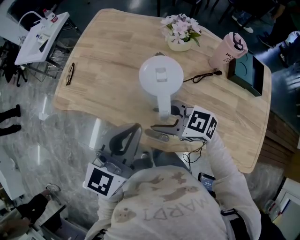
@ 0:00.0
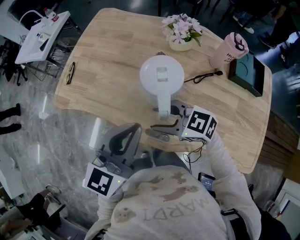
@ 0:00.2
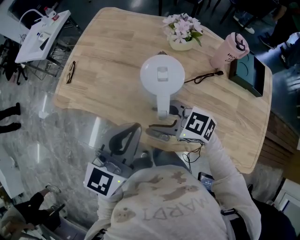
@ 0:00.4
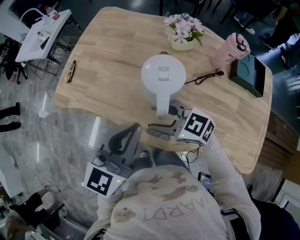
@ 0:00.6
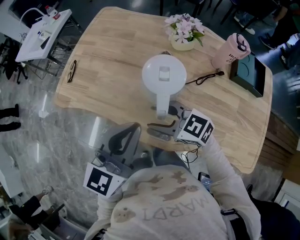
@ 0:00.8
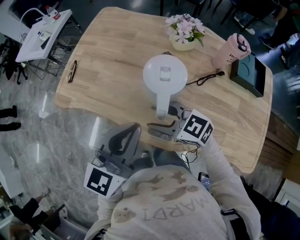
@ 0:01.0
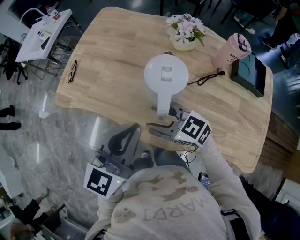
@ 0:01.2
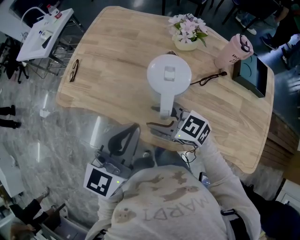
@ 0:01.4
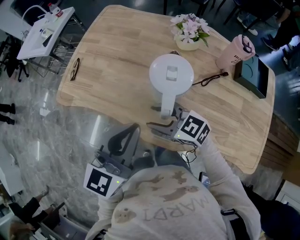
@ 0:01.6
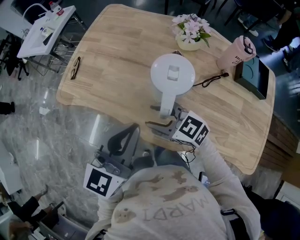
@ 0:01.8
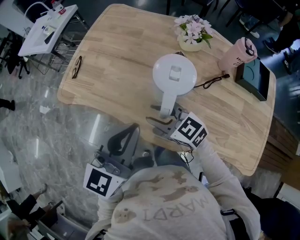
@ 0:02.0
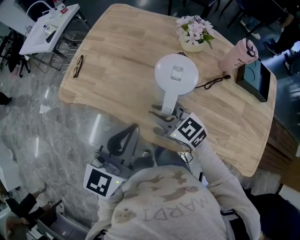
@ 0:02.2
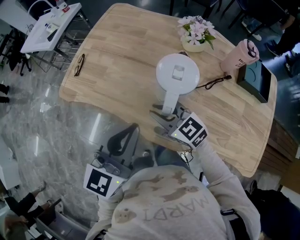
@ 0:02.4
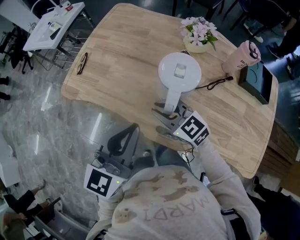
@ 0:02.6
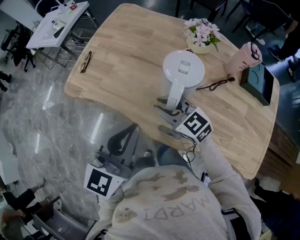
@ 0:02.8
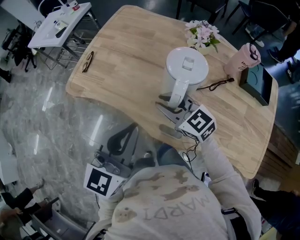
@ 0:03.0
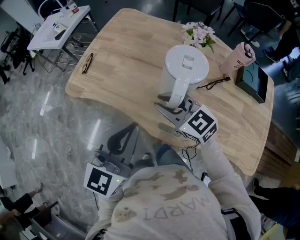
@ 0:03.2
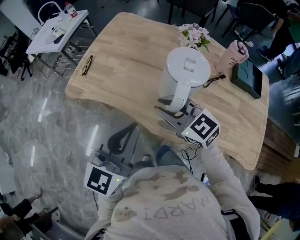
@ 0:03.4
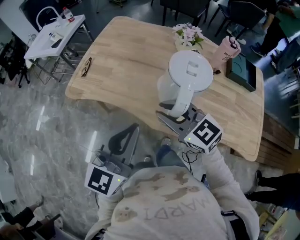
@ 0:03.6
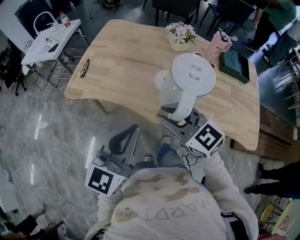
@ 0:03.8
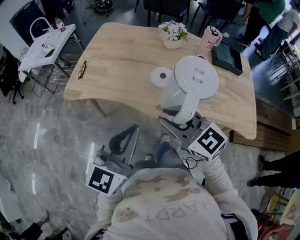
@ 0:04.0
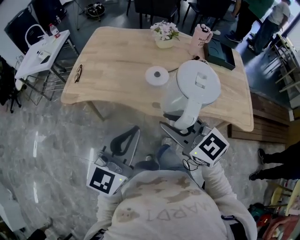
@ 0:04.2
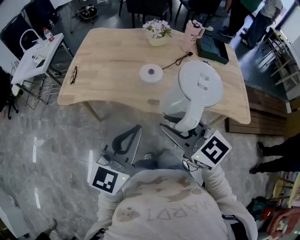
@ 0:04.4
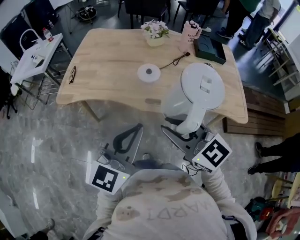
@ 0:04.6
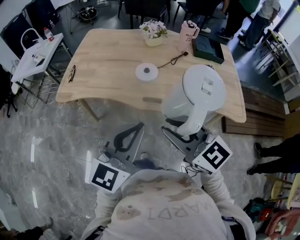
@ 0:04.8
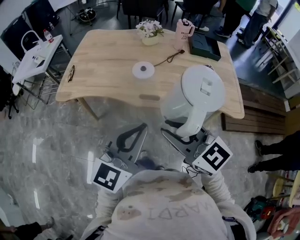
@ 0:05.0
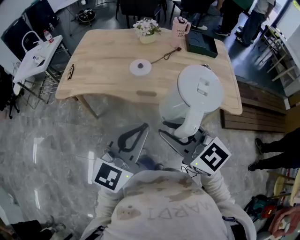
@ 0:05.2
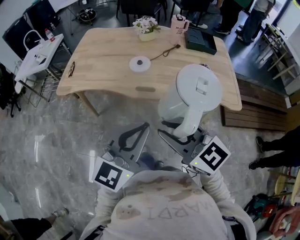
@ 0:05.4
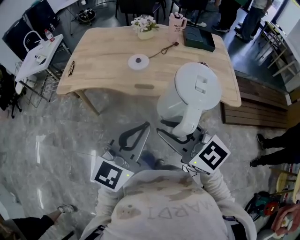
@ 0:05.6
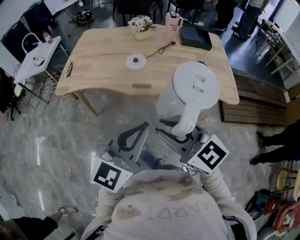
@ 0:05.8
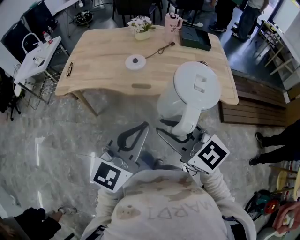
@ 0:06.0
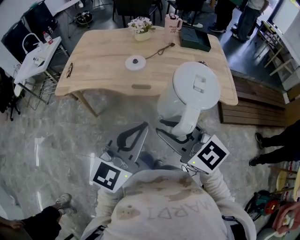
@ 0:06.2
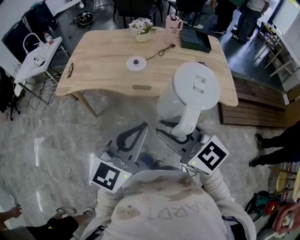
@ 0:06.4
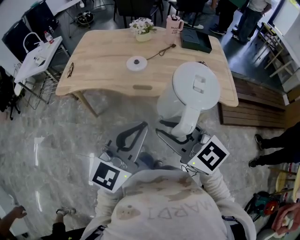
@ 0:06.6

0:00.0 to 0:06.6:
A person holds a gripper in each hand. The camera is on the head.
0:00.0 to 0:01.6: The grippers make only small movements.
0:01.6 to 0:03.2: The right gripper is displaced upward by approximately 5 cm, and closes, while the left gripper travels to the left by approximately 5 cm.
0:03.2 to 0:05.0: The grippers both shift backward by some 30 cm. The left gripper swivels approximately 20 degrees. Meanwhile the right gripper rotates roughly 20 degrees.
0:05.0 to 0:06.6: The two grippers go about 10 cm backward.

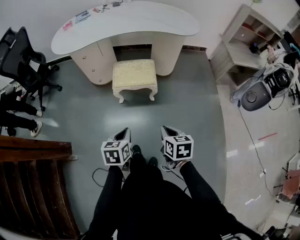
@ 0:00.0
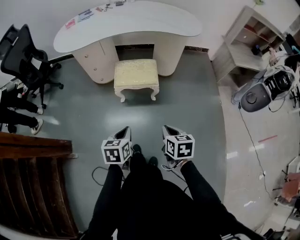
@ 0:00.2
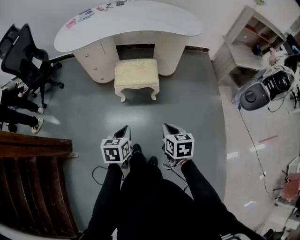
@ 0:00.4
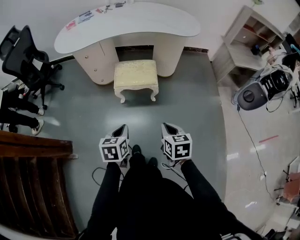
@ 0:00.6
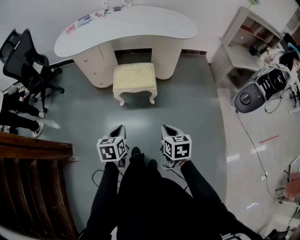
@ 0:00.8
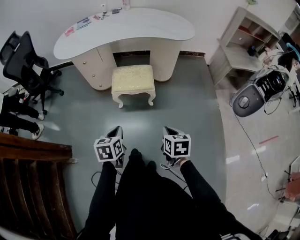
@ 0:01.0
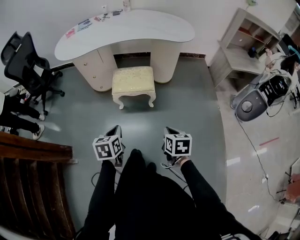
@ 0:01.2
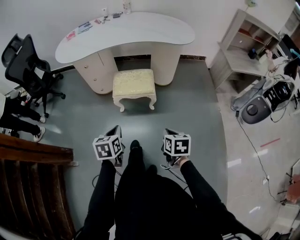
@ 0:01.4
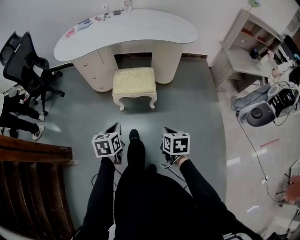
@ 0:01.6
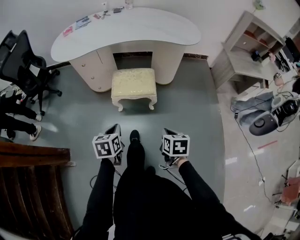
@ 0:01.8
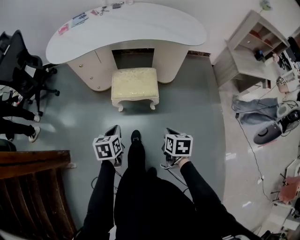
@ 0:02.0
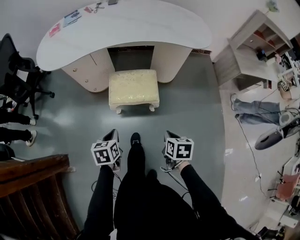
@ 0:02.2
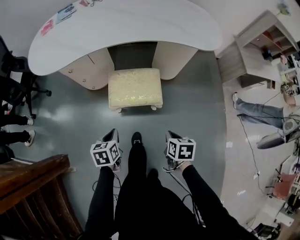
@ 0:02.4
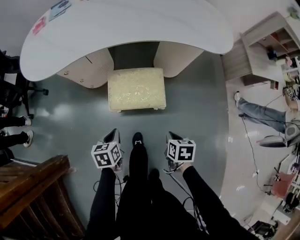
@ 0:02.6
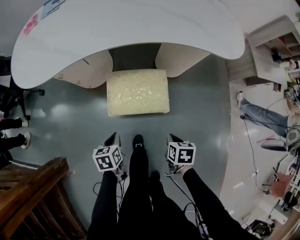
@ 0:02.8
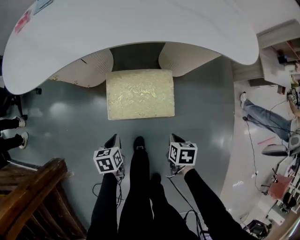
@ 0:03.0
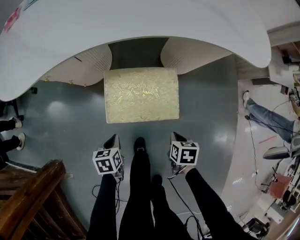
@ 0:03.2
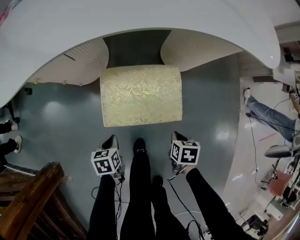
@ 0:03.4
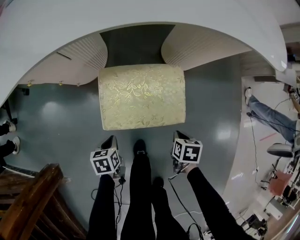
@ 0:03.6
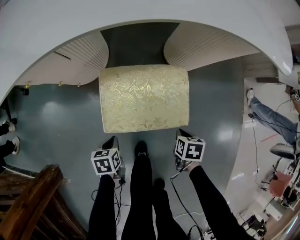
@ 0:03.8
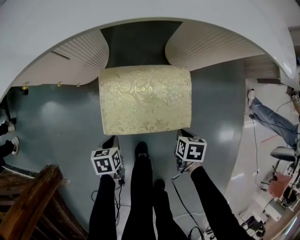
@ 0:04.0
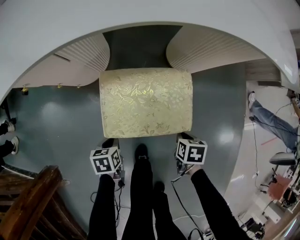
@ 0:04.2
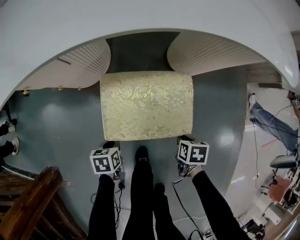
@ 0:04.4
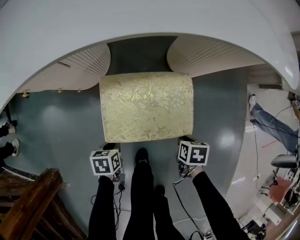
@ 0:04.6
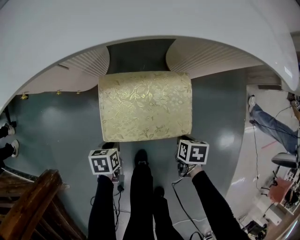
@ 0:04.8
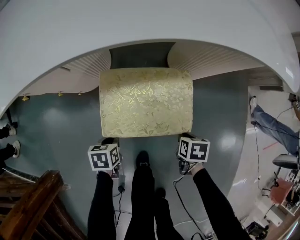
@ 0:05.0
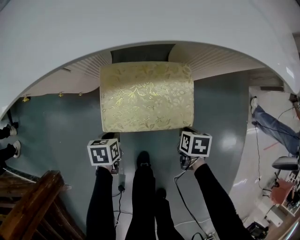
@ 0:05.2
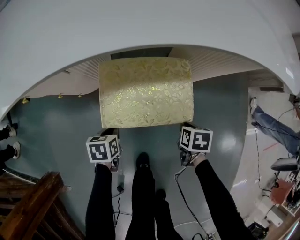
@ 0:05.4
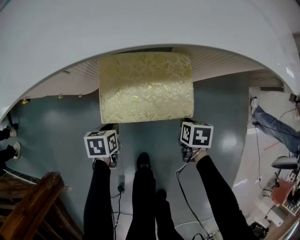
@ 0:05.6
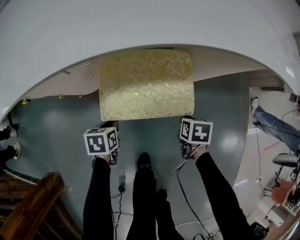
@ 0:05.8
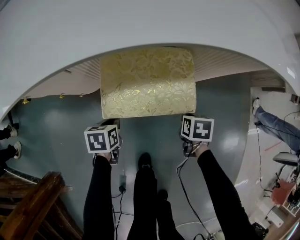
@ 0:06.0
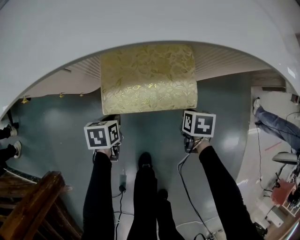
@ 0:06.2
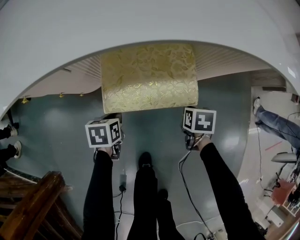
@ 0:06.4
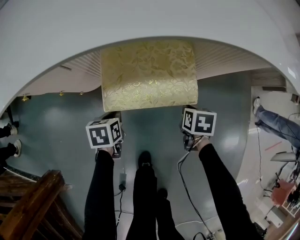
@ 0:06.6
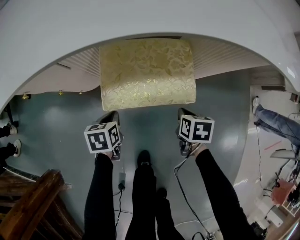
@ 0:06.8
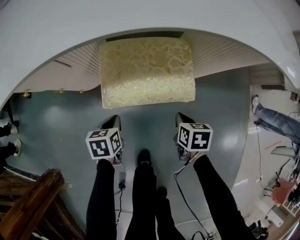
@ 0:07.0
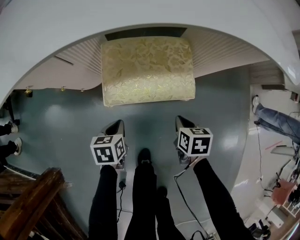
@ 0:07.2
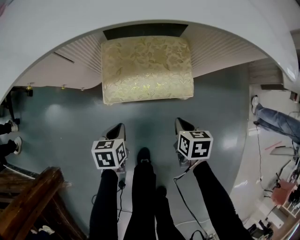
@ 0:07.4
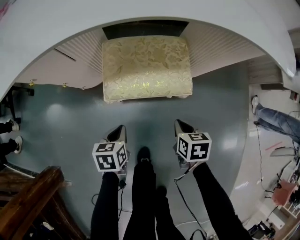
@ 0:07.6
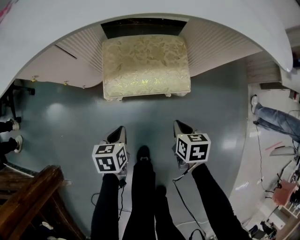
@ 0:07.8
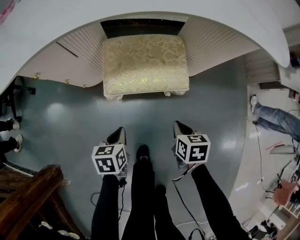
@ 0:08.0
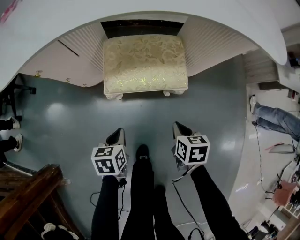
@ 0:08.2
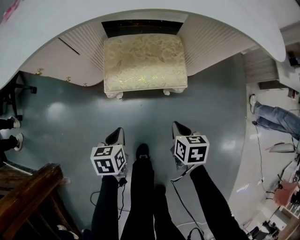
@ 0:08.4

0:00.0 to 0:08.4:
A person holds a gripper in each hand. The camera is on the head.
0:00.0 to 0:01.4: There are only small adjustments of the grippers.
0:01.4 to 0:02.8: The grippers both shift forward and downward by some 35 cm.
0:02.8 to 0:04.2: The two grippers go about 20 cm downward.
0:04.2 to 0:05.6: The grippers move only a little.
0:05.6 to 0:07.0: The right gripper changes place by about 5 cm.
0:07.0 to 0:08.4: The left gripper travels backward and upward by roughly 15 cm; the right gripper heads backward, covering some 10 cm.

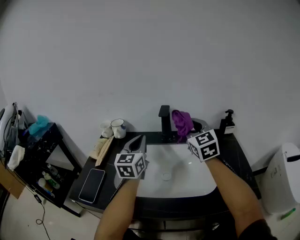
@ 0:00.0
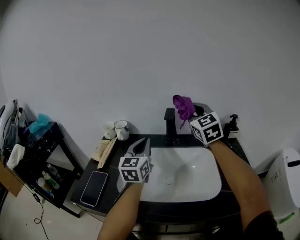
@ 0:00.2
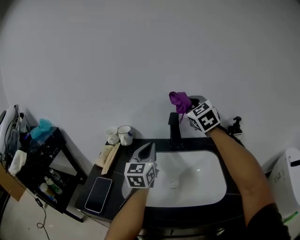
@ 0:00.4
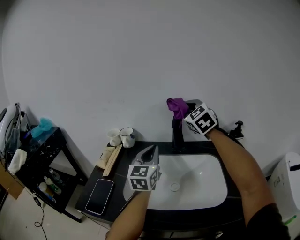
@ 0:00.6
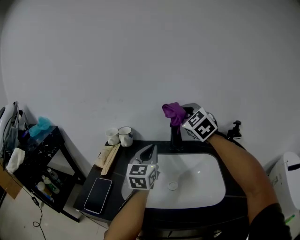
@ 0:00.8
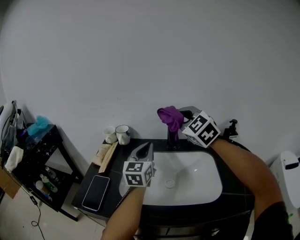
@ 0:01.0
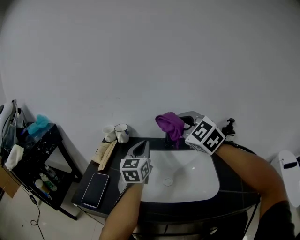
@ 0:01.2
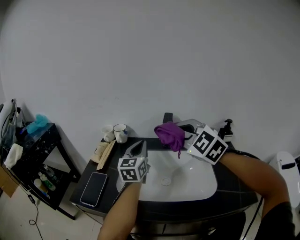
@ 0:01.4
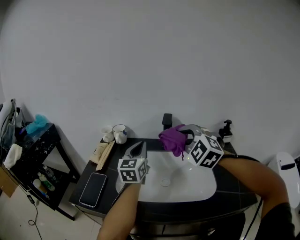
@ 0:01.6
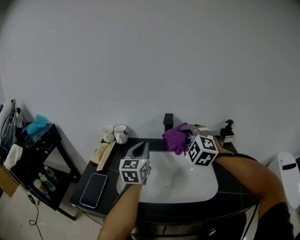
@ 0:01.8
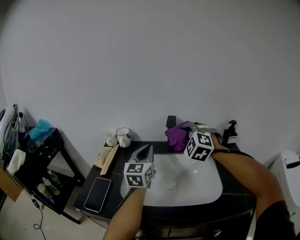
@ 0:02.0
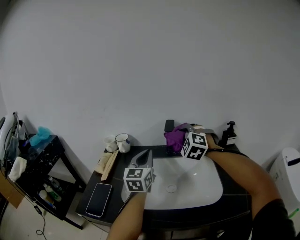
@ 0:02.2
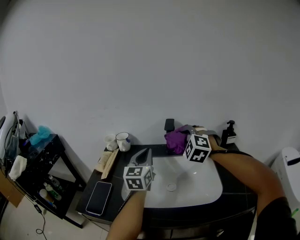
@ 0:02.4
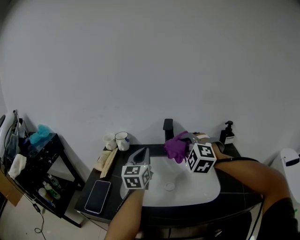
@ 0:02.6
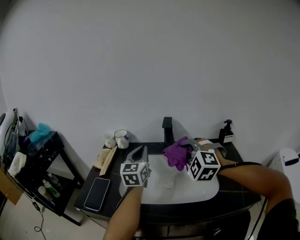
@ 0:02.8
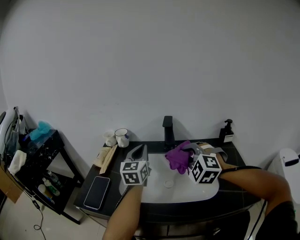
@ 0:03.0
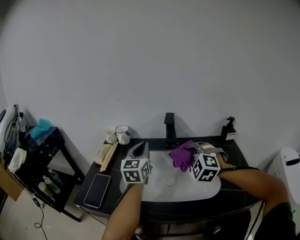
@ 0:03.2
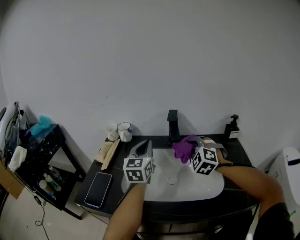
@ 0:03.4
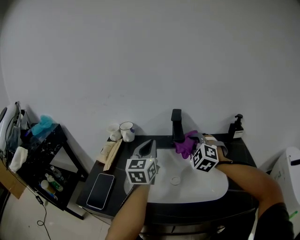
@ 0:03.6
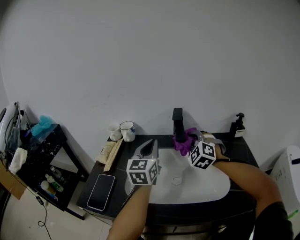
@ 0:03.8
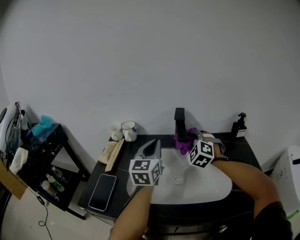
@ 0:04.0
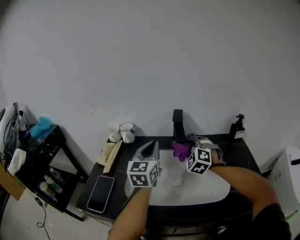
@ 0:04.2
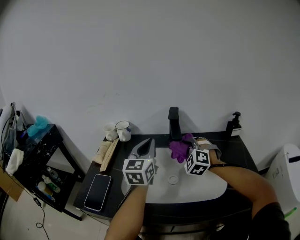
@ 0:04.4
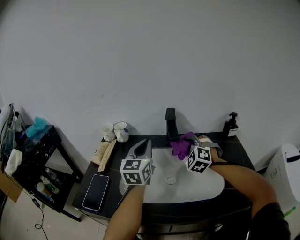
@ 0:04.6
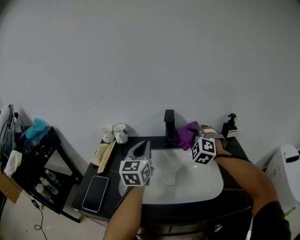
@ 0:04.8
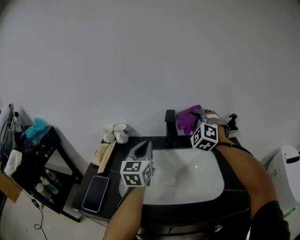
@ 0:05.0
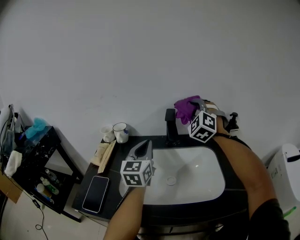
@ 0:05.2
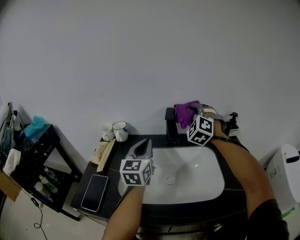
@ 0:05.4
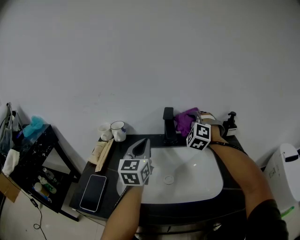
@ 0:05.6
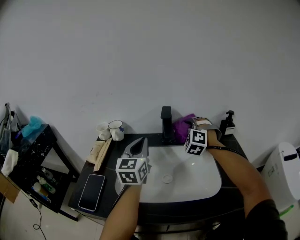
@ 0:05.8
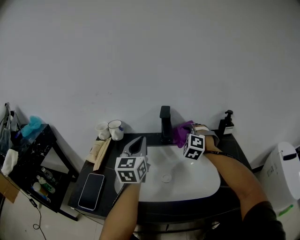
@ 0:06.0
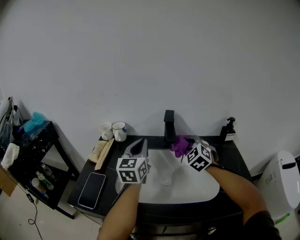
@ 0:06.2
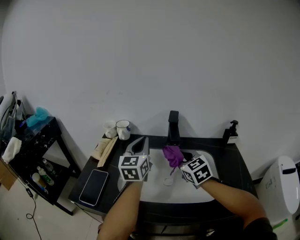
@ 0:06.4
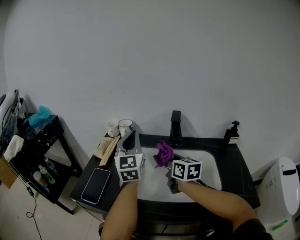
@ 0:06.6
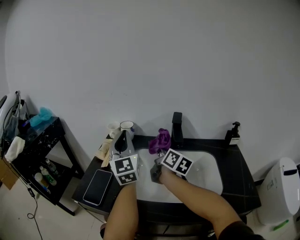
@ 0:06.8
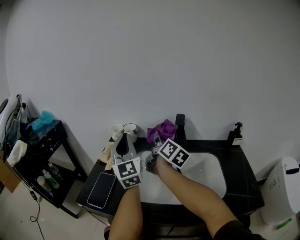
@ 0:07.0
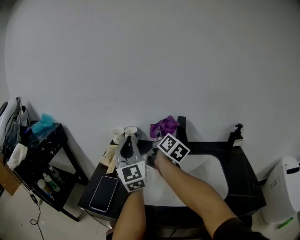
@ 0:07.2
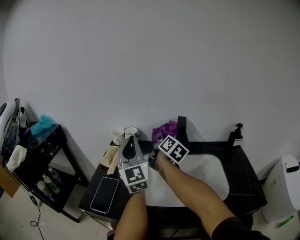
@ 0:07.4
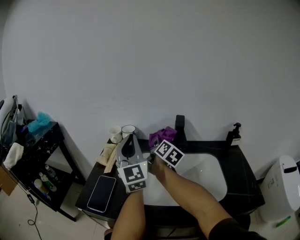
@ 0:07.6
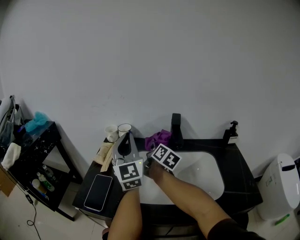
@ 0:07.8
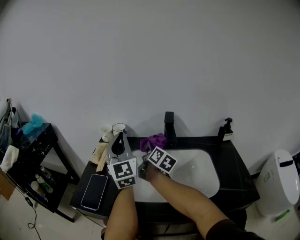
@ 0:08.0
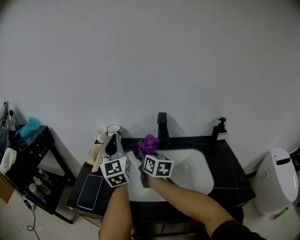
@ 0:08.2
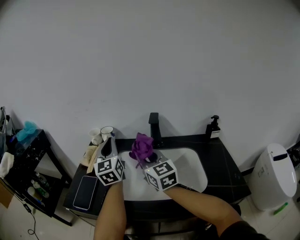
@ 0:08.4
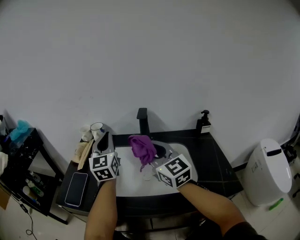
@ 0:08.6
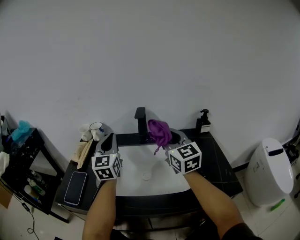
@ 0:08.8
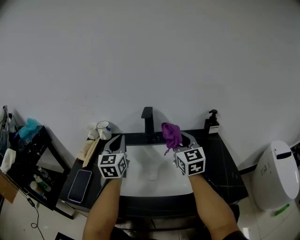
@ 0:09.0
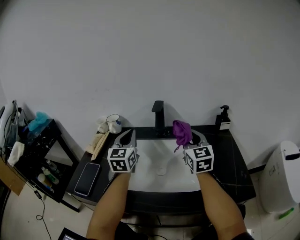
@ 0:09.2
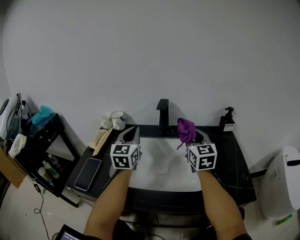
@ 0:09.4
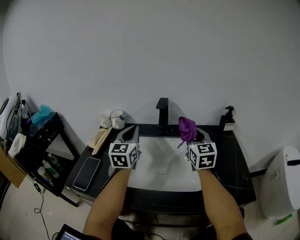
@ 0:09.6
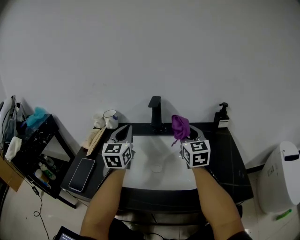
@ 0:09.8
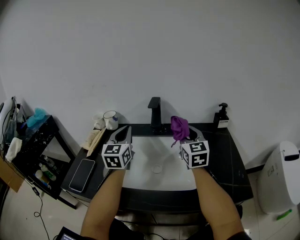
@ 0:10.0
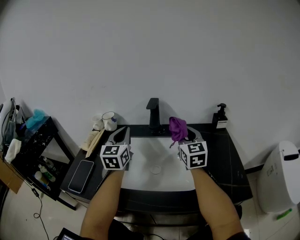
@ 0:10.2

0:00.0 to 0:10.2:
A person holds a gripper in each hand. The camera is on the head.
0:00.0 to 0:01.4: The right gripper travels to the left and backward by roughly 10 cm, and changes its angle by about 30 degrees.
0:01.4 to 0:03.0: The right gripper goes approximately 10 cm downward, reaches some 10 cm forward, then returns, and changes its angle by about 20 degrees.
0:03.0 to 0:04.4: The right gripper is displaced forward and downward by roughly 15 cm.
0:04.4 to 0:05.8: The right gripper shifts roughly 5 cm forward, and goes upward and returns, about 20 cm each way.
0:05.8 to 0:07.2: The left gripper moves to the left and upward, approximately 15 cm, and swivels some 30 degrees; the right gripper moves to the left, approximately 15 cm, and rotates around the line of its fingers by some 120 degrees, clockwise from behind.
0:07.2 to 0:08.8: The right gripper shifts some 20 cm backward and to the right, and rotates around the line of its fingers by some 50 degrees, counterclockwise from behind, while the left gripper shifts about 10 cm to the right, and changes its angle by roughly 20 degrees.
0:08.8 to 0:10.2: The right gripper shifts roughly 5 cm downward.
